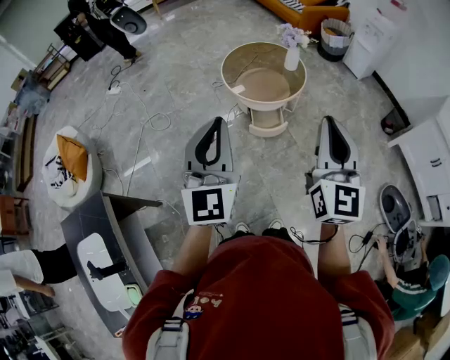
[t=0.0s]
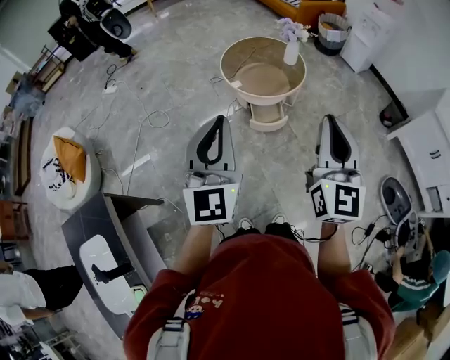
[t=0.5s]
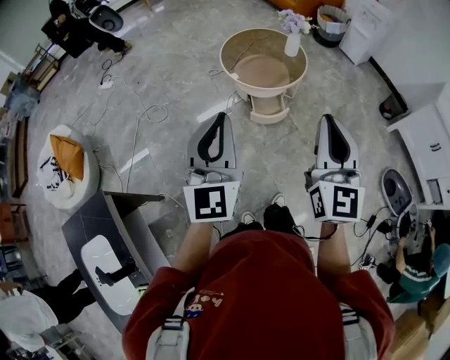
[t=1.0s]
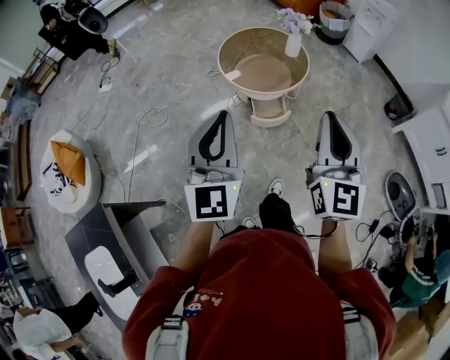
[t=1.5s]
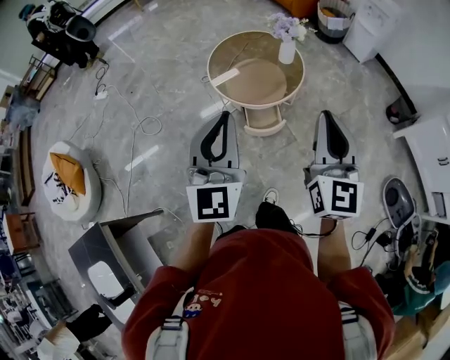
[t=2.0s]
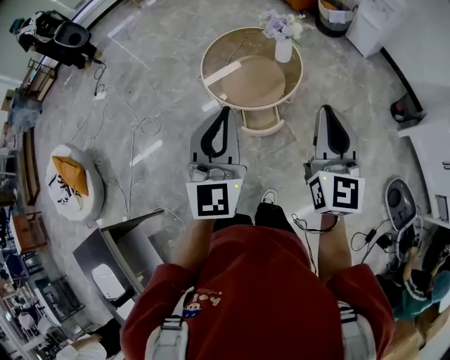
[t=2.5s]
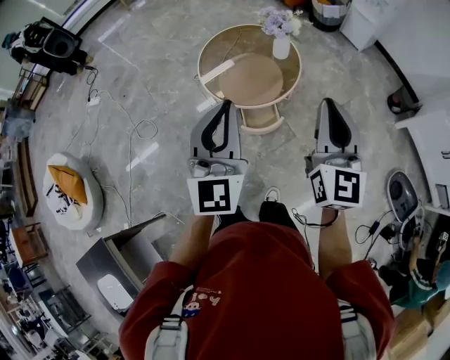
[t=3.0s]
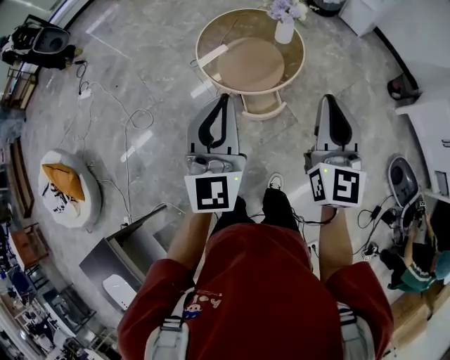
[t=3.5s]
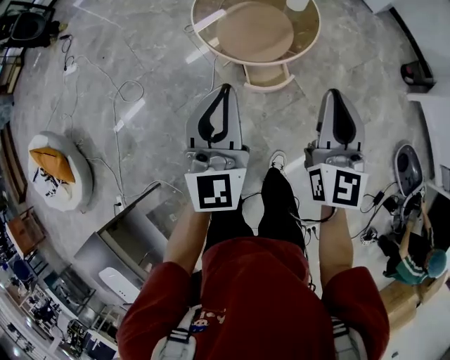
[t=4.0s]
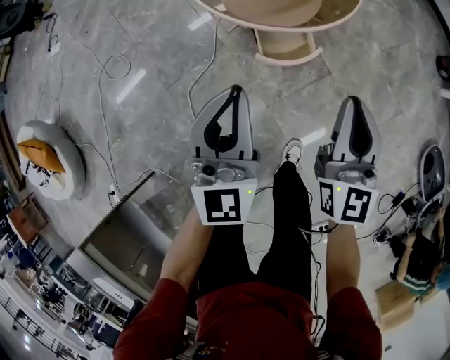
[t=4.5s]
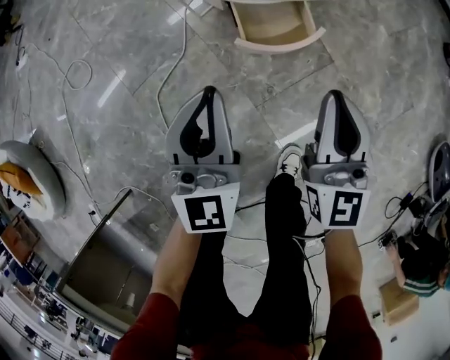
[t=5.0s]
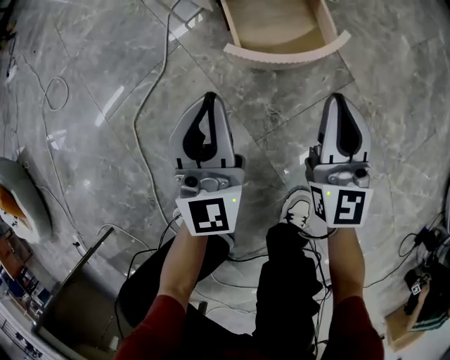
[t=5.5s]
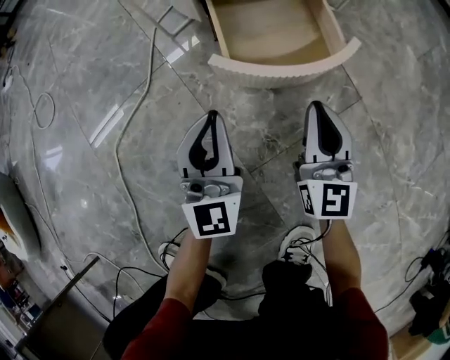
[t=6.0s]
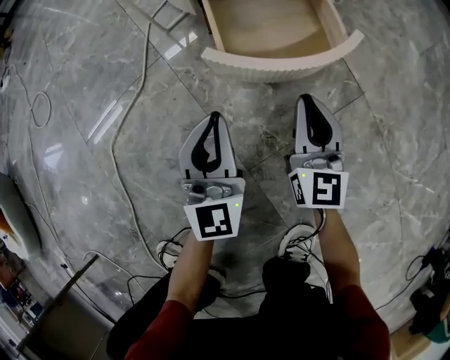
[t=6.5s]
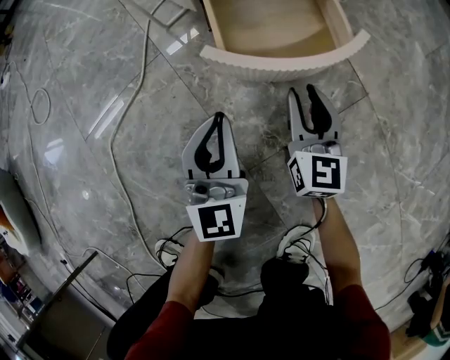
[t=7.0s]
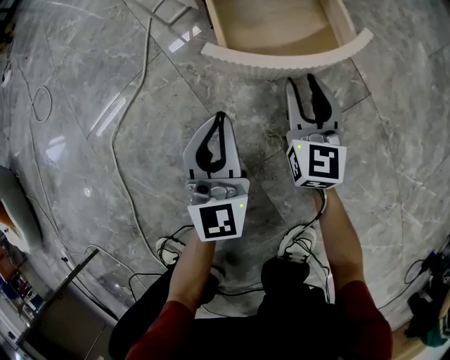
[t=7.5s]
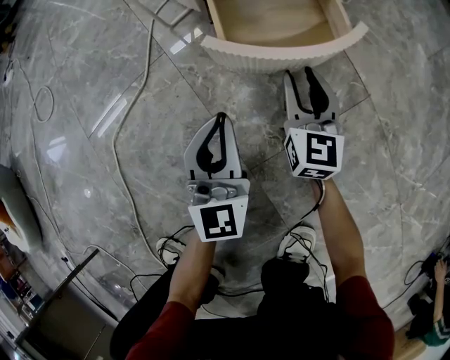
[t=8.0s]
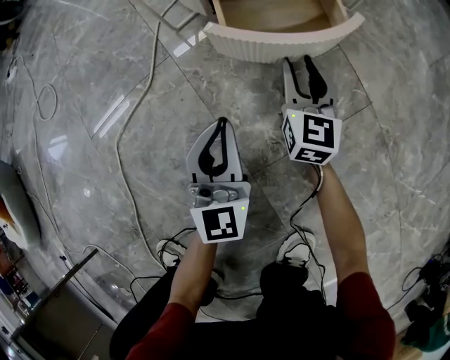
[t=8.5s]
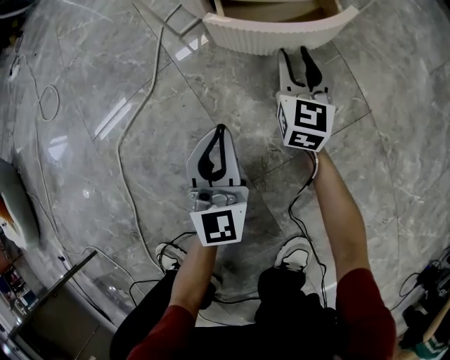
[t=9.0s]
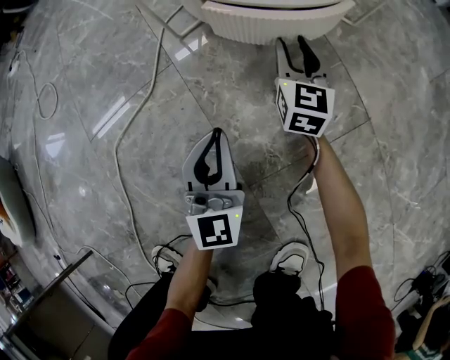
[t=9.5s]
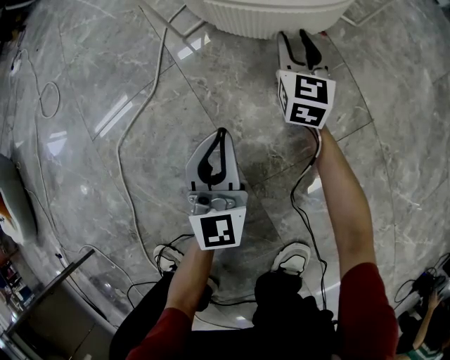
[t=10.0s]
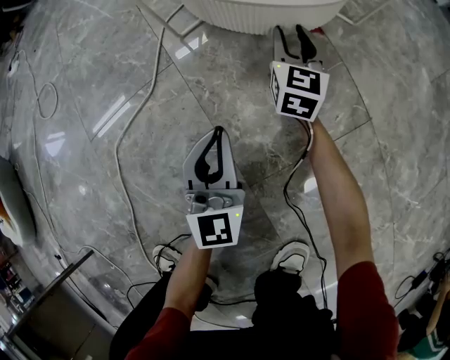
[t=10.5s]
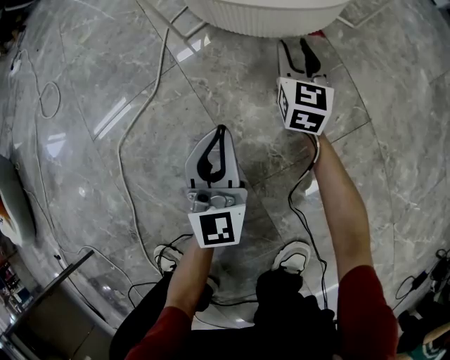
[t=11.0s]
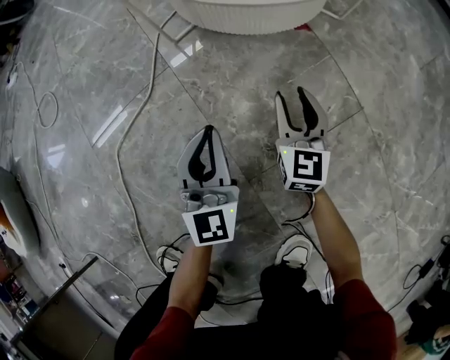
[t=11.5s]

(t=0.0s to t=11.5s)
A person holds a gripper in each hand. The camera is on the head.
t=0.0s - t=2.0s: The two grippers go about 20 cm forward.
t=2.0s - t=4.0s: The right gripper is displaced downward, forward and to the left by approximately 20 cm; the left gripper is displaced downward and forward by roughly 20 cm.
t=4.0s - t=6.0s: The two grippers go roughly 80 cm downward.
t=6.0s - t=7.5s: The right gripper travels downward by approximately 5 cm, and opens.
t=7.5s - t=9.5s: The right gripper is displaced forward by roughly 15 cm.
t=9.5s - t=11.5s: The right gripper is displaced backward by some 15 cm.

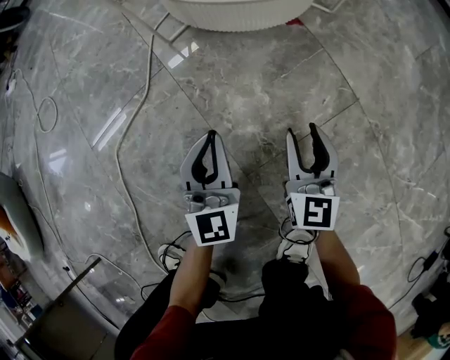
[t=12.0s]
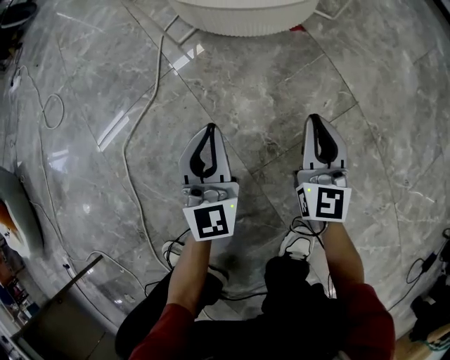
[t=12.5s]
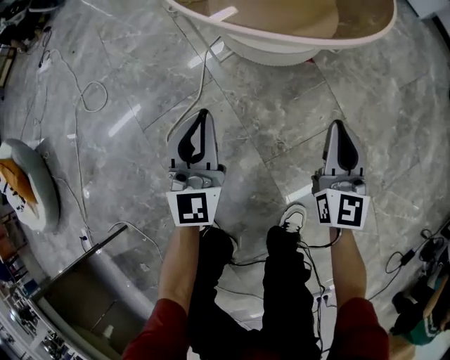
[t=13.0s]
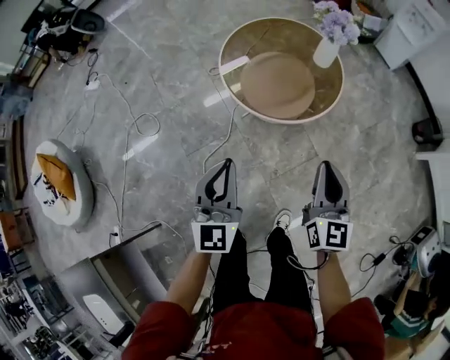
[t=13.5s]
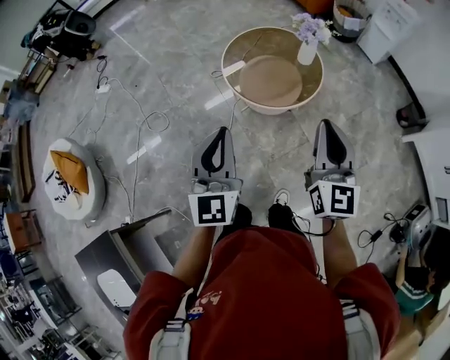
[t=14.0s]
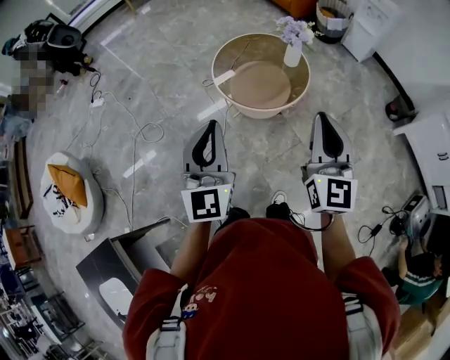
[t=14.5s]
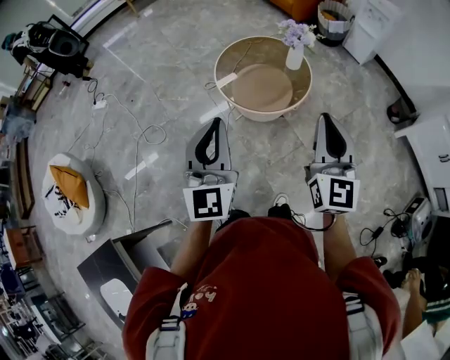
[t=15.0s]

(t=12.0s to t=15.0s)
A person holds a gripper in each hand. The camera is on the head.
t=12.0s - t=13.5s: Both grippers travel together upward, roughly 70 cm. The right gripper closes.
t=13.5s - t=15.0s: Both grippers move upward, roughly 25 cm.

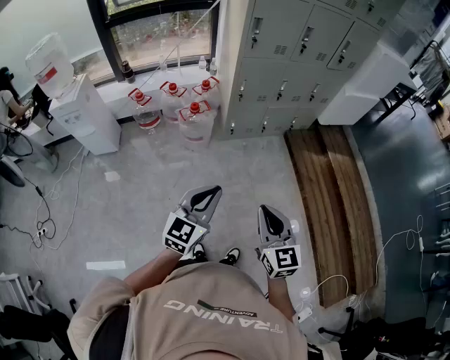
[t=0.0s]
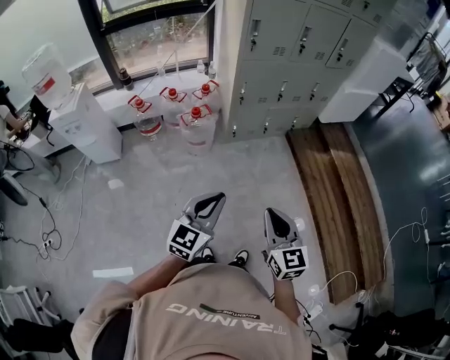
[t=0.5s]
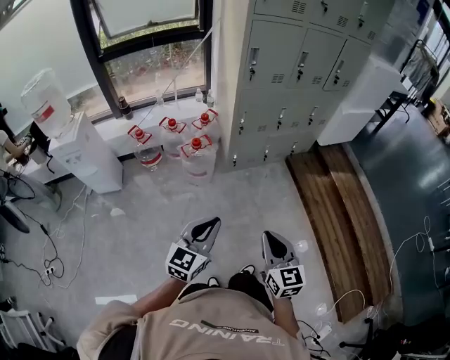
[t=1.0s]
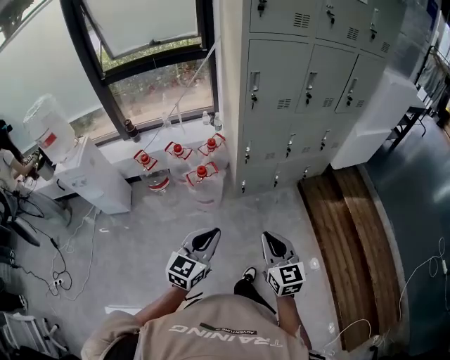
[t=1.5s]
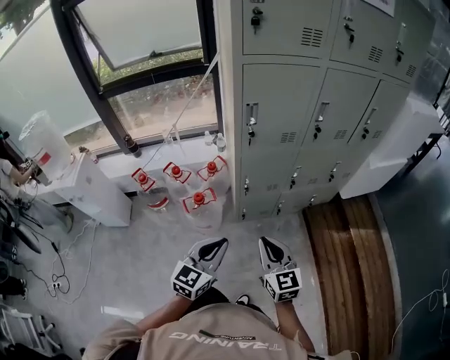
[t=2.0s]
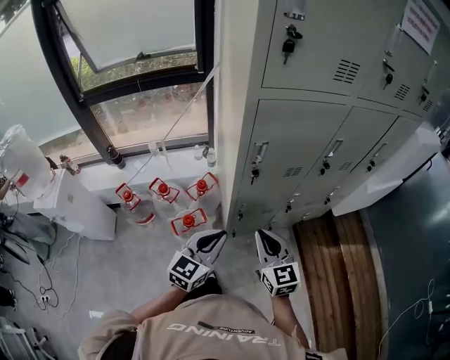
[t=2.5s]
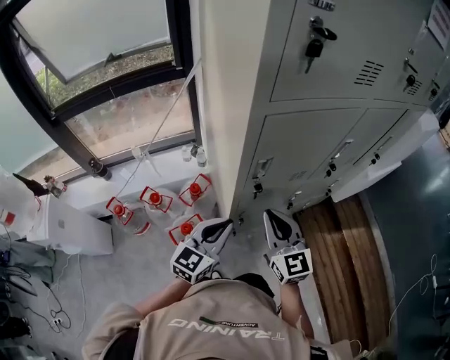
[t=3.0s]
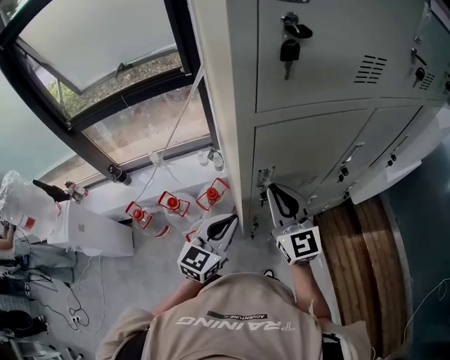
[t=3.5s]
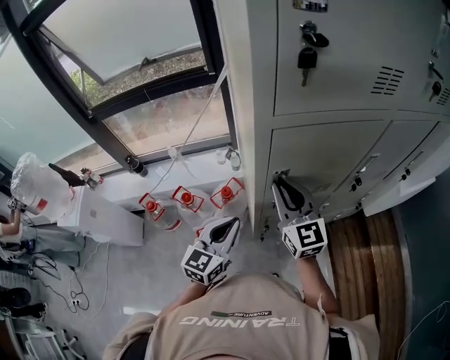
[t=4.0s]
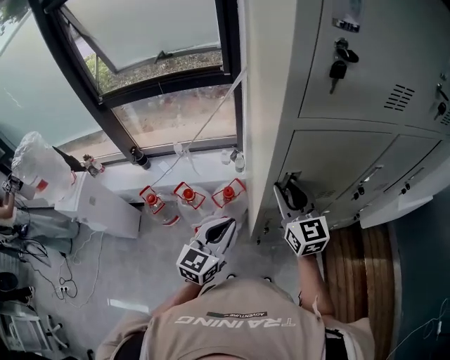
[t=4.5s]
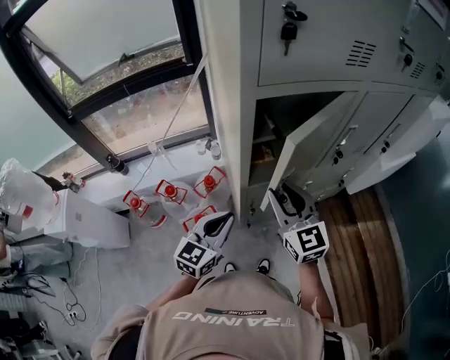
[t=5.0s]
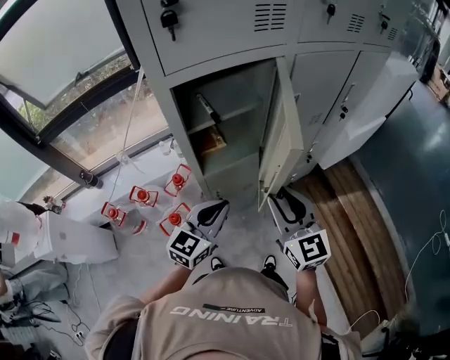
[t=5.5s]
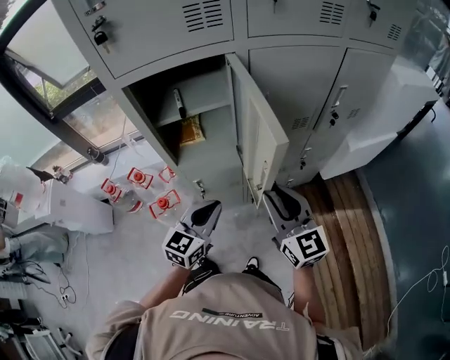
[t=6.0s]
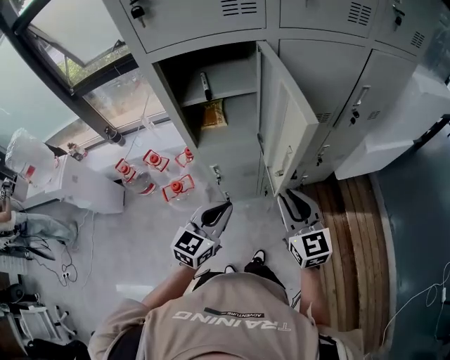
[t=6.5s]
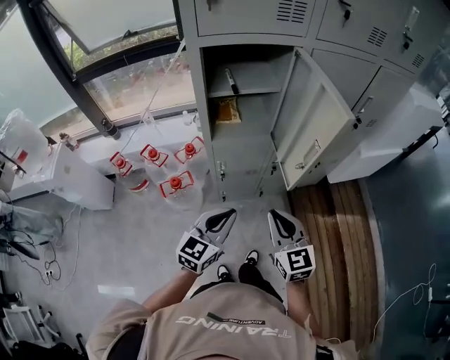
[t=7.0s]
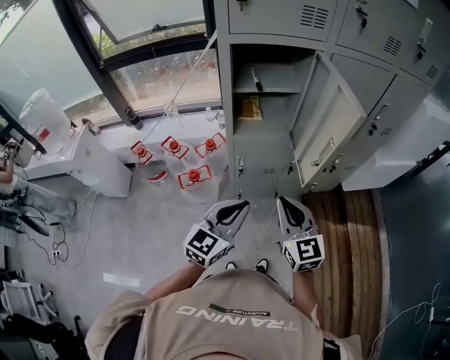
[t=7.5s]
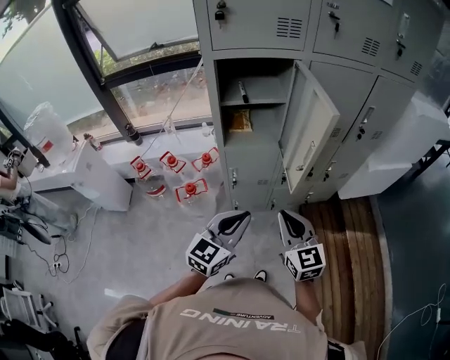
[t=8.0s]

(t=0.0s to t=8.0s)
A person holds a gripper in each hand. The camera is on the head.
t=0.0s - t=2.0s: Both grippers move forward, approximately 40 cm.
t=2.0s - t=4.0s: The grippers both shift forward by approximately 35 cm.
t=4.0s - t=6.0s: The right gripper goes approximately 35 cm to the right and backward, and opens its fingers. Meanwhile the left gripper shifts roughly 25 cm to the right.
t=6.0s - t=8.0s: The left gripper travels backward by approximately 15 cm; the right gripper heads backward and to the left, covering roughly 15 cm, and closes.

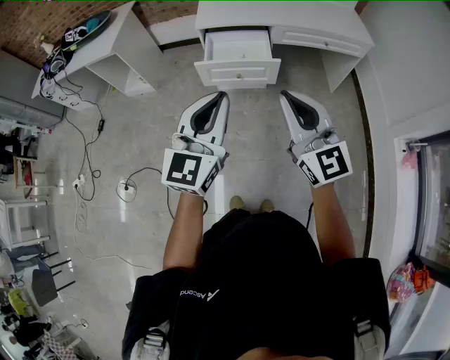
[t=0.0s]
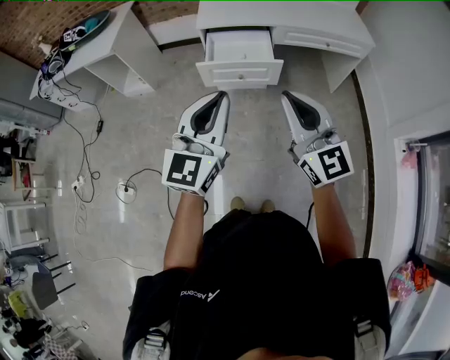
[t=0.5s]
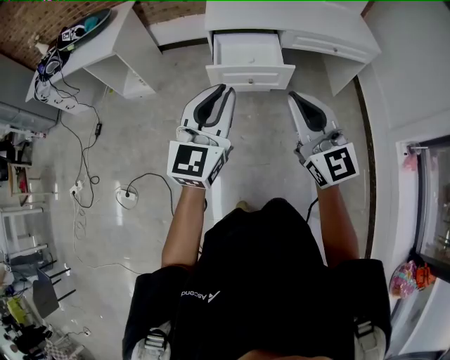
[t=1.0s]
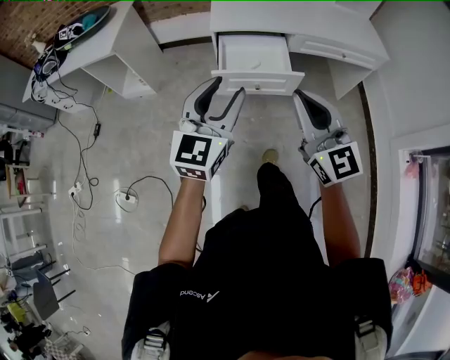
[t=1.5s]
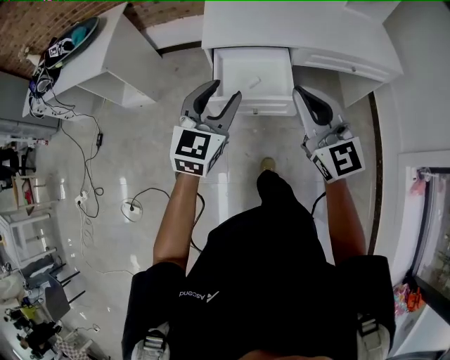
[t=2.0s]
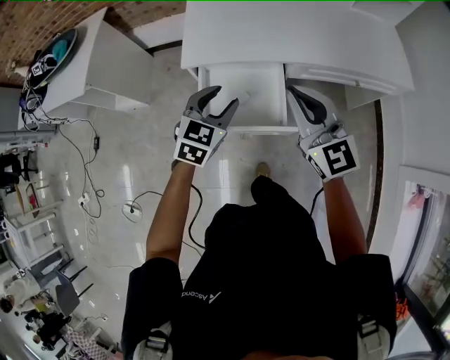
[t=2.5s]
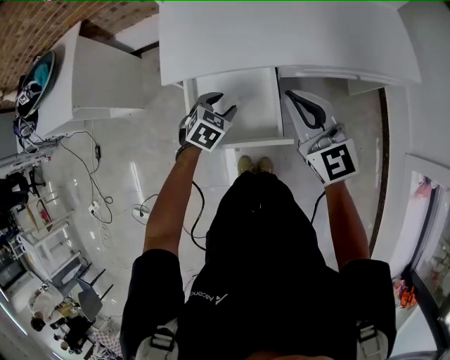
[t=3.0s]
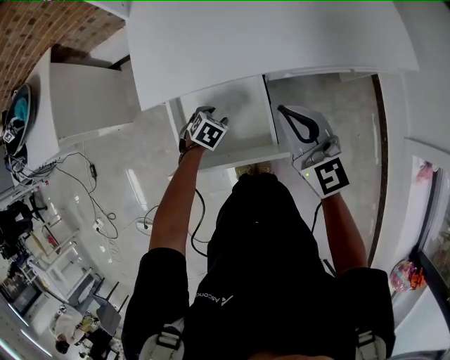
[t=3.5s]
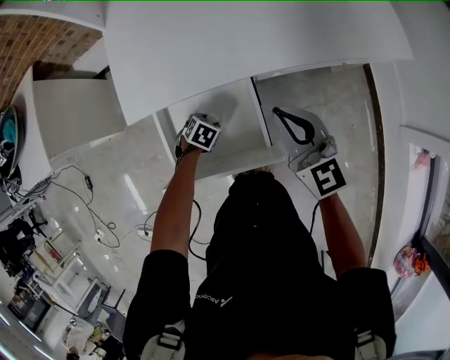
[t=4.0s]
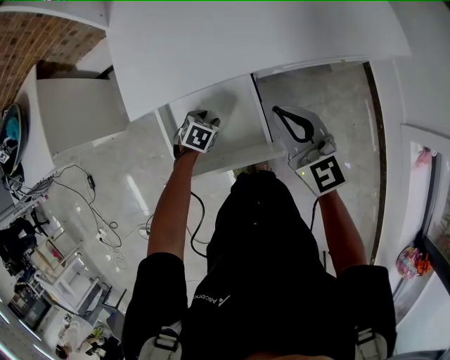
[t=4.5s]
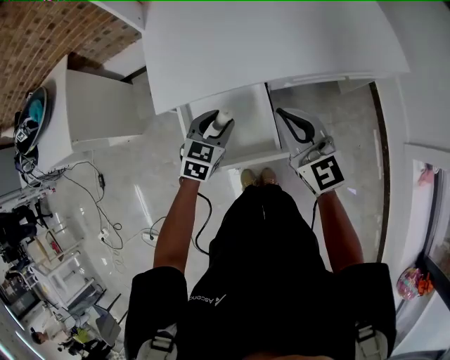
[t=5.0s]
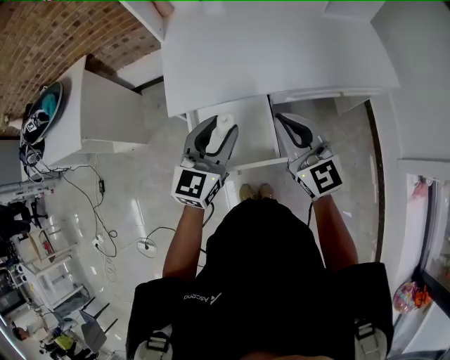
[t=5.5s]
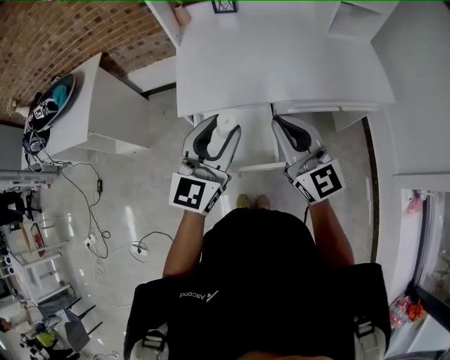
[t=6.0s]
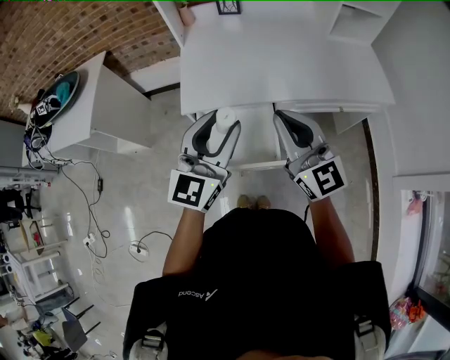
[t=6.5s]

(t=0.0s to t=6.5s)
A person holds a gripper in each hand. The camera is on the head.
t=0.0s - t=2.0s: The two grippers go approximately 30 cm forward. The left gripper opens up.
t=2.0s - t=4.5s: The right gripper moves roughly 35 cm, and rotates some 20 degrees. Meanwhile the left gripper moves downward, approximately 40 cm, and tilts its fingers roughly 60 degrees downward.
t=4.5s - t=6.5s: The left gripper travels upward by roughly 50 cm, and tips its fingers upward by some 70 degrees; the right gripper travels upward and backward by some 25 cm, and swivels some 30 degrees.
